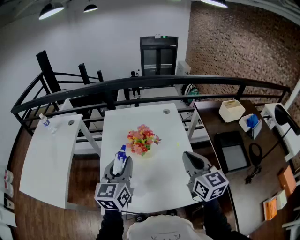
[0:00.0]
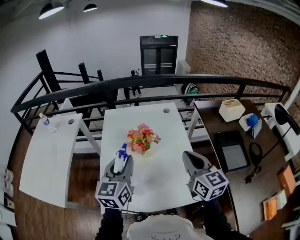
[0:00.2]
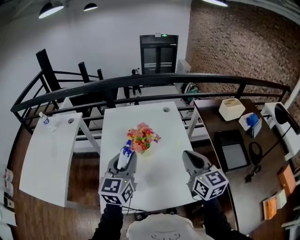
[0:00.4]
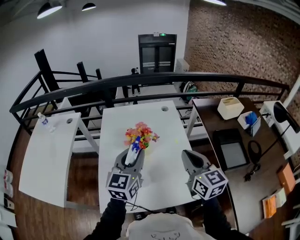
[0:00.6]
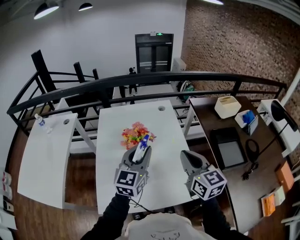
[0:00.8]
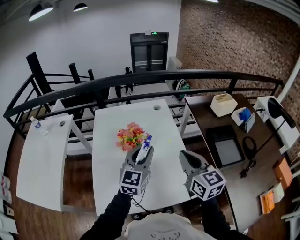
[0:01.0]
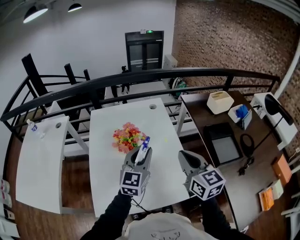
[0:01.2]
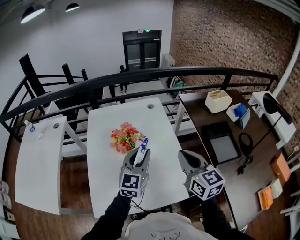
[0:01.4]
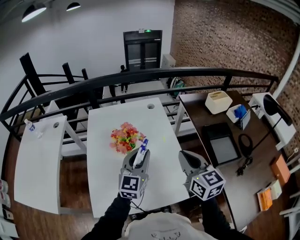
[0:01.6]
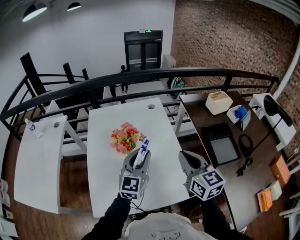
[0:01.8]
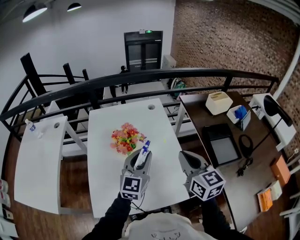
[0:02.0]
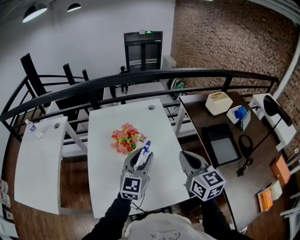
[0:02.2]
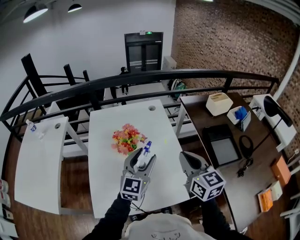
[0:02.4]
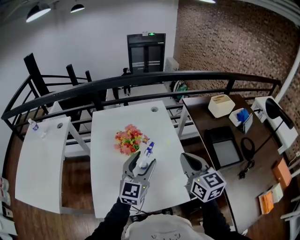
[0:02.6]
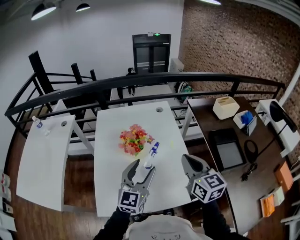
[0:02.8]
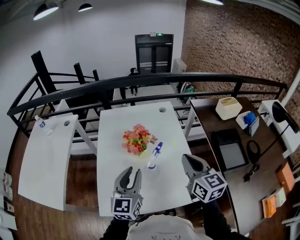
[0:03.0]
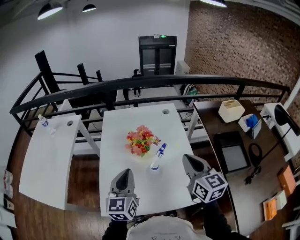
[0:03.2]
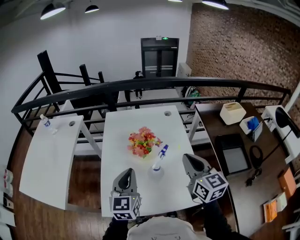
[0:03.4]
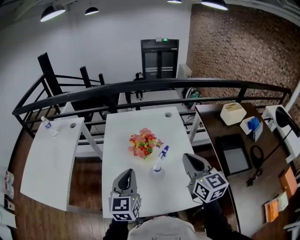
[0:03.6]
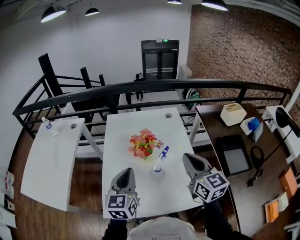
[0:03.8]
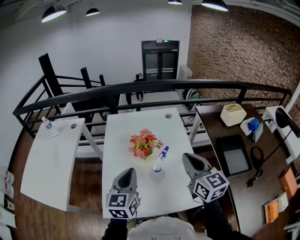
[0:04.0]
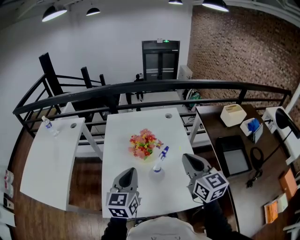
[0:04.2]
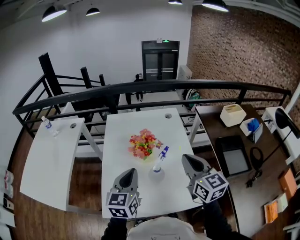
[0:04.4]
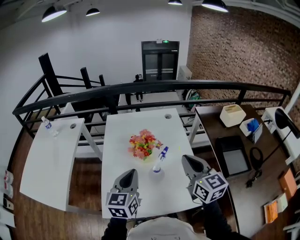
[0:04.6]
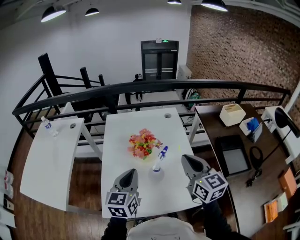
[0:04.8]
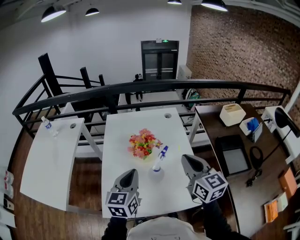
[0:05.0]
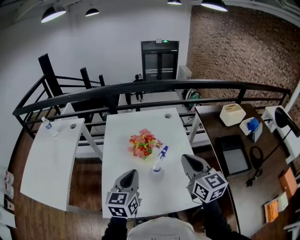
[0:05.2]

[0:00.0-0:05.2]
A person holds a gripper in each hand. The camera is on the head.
0:00.0 to 0:01.8: The left gripper travels to the right by roughly 15 cm, and rotates roughly 20 degrees.
0:01.8 to 0:03.4: The right gripper ends up approximately 5 cm from where it was. Meanwhile the left gripper heads to the left and backward, covering about 15 cm, turns by some 20 degrees, and closes.
0:03.4 to 0:05.2: The grippers stay close to where they were, moving slightly.

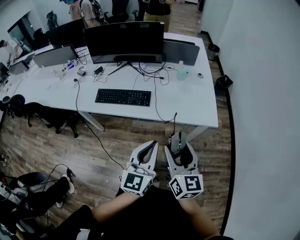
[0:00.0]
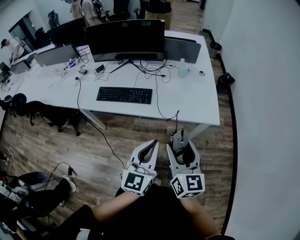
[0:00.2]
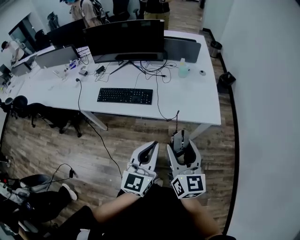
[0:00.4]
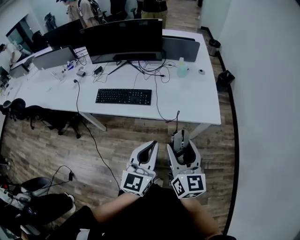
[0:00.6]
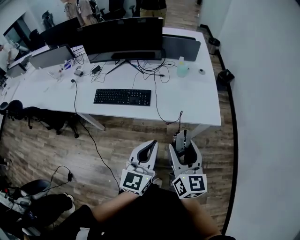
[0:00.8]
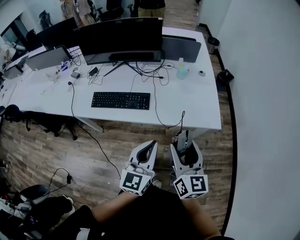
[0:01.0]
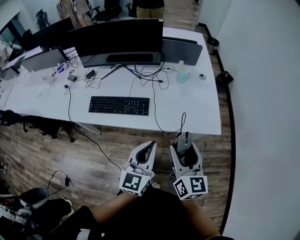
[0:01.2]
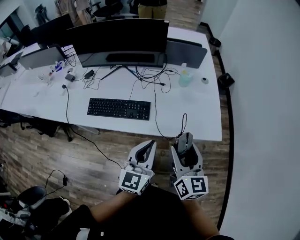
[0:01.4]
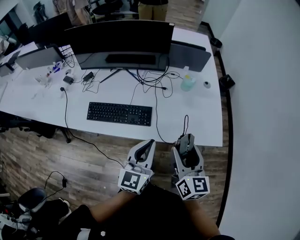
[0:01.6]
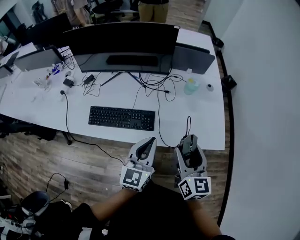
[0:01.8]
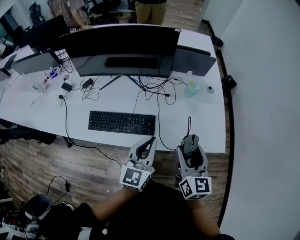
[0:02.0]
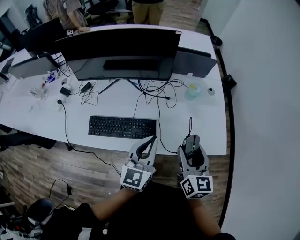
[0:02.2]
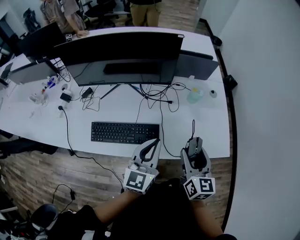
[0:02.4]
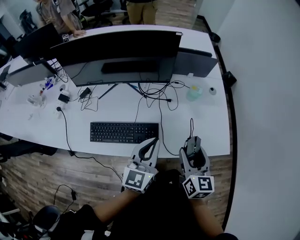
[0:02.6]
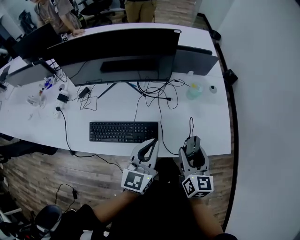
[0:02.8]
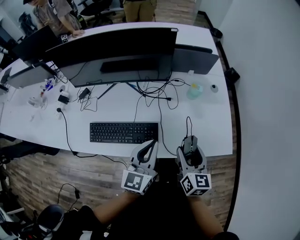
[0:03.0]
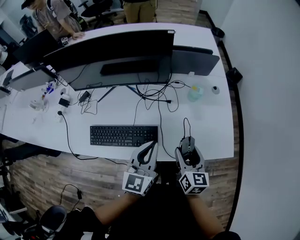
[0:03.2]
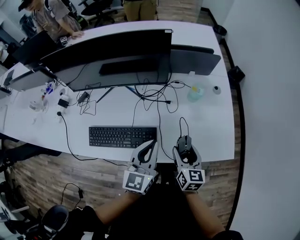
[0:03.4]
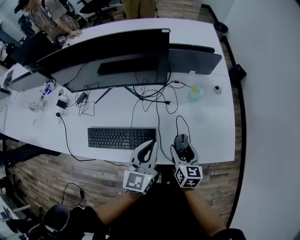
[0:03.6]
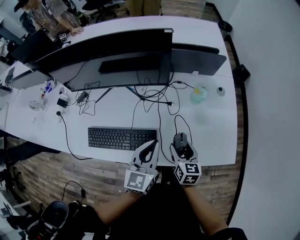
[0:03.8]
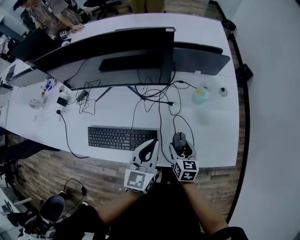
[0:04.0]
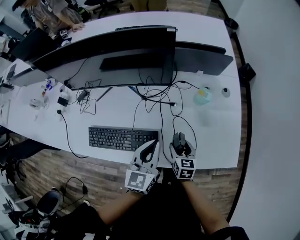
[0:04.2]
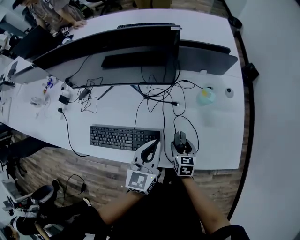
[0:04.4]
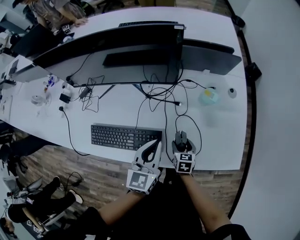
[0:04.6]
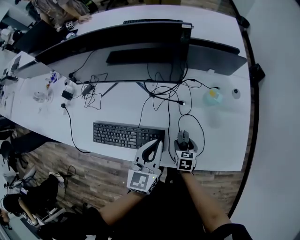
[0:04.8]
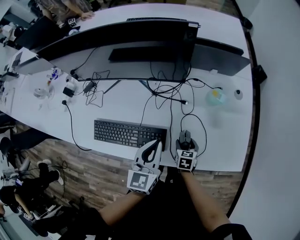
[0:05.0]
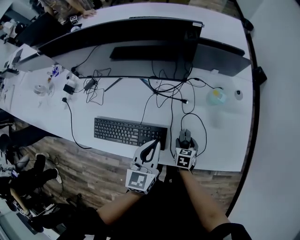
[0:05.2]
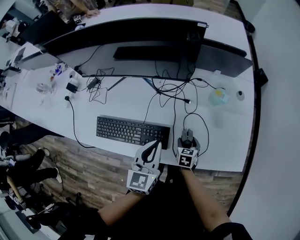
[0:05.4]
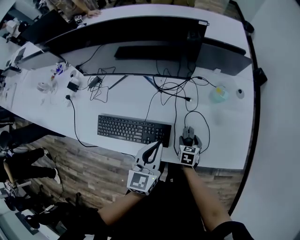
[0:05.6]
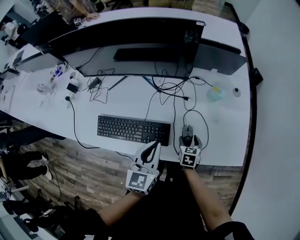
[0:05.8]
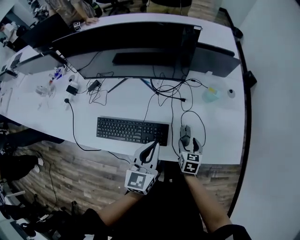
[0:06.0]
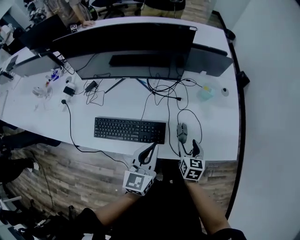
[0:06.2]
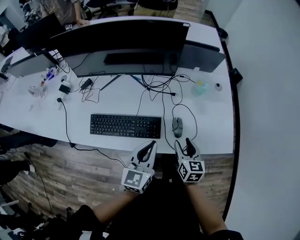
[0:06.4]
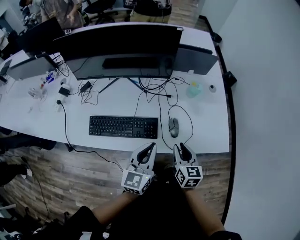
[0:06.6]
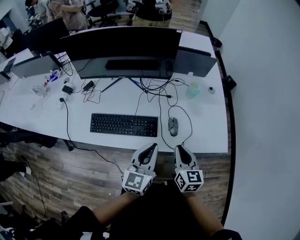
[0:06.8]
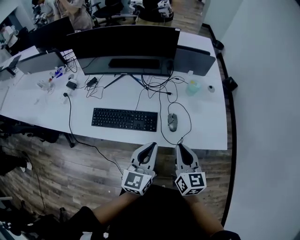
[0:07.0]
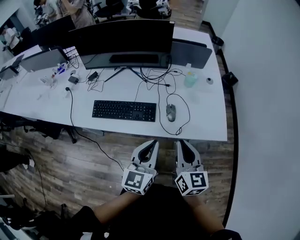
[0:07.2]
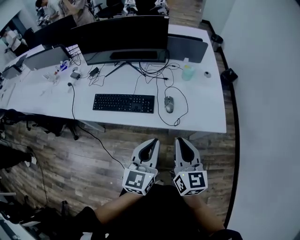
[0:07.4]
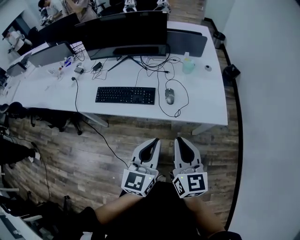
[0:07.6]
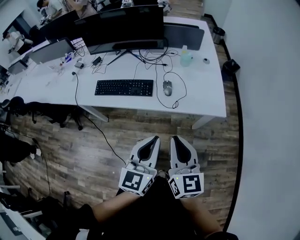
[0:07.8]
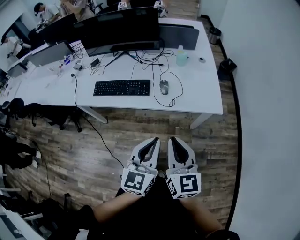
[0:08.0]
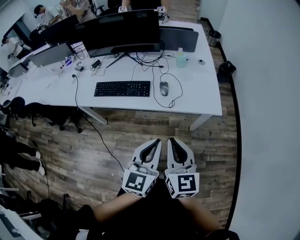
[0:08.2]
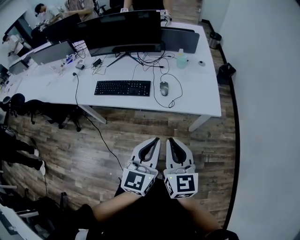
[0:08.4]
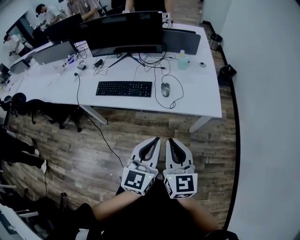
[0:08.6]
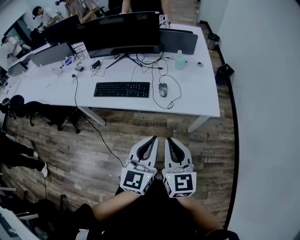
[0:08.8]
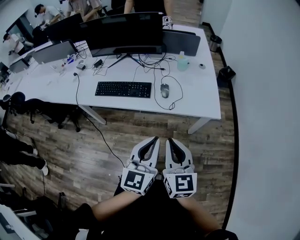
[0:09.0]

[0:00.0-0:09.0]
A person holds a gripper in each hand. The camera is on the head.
0:00.0 to 0:01.6: Both grippers travel together forward, roughly 20 cm.
0:01.6 to 0:03.0: The left gripper heads forward, covering approximately 15 cm; the right gripper goes approximately 15 cm forward and downward.
0:03.0 to 0:04.4: The left gripper heads forward and downward, covering about 10 cm; the right gripper moves downward and forward, some 25 cm, and turns by about 30 degrees.
0:04.4 to 0:06.0: The right gripper goes downward and returns, some 5 cm each way; the left gripper is displaced backward and to the left by about 10 cm.
0:06.0 to 0:07.6: The left gripper is displaced backward and to the right by some 30 cm. Meanwhile the right gripper heads backward and upward, covering approximately 40 cm, points its fingers roughly 40 degrees further upward, and closes up.
0:07.6 to 0:09.0: The two grippers go roughly 10 cm backward.

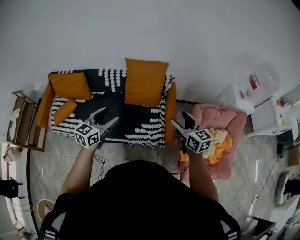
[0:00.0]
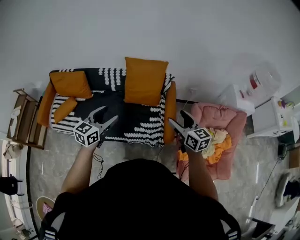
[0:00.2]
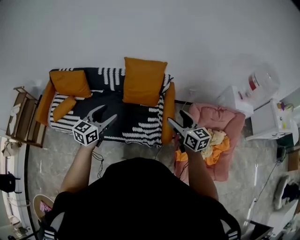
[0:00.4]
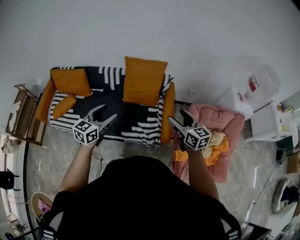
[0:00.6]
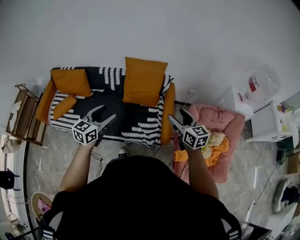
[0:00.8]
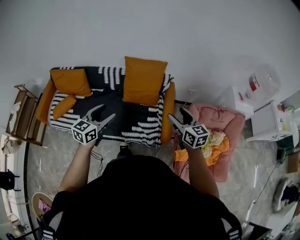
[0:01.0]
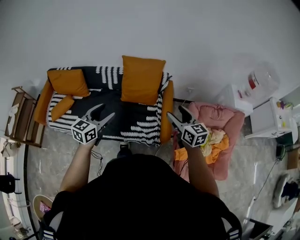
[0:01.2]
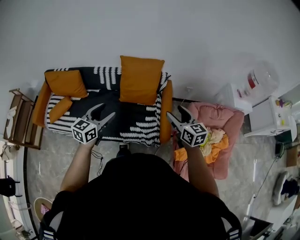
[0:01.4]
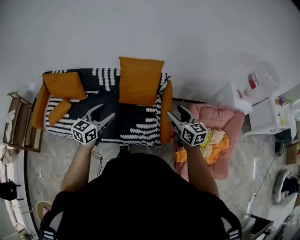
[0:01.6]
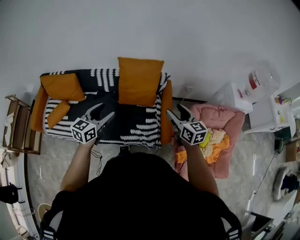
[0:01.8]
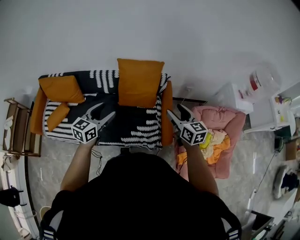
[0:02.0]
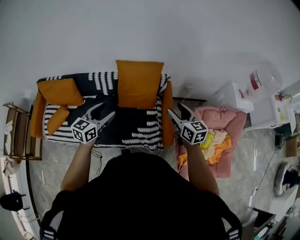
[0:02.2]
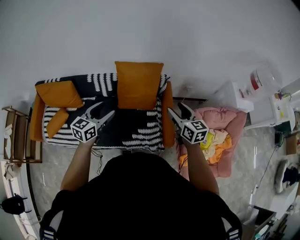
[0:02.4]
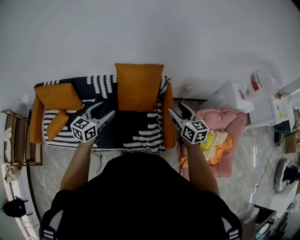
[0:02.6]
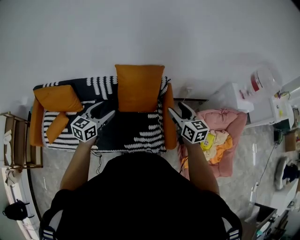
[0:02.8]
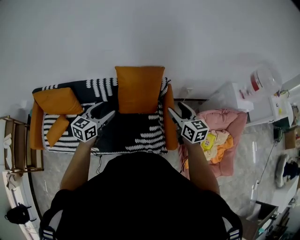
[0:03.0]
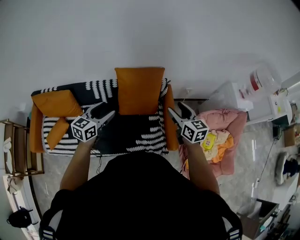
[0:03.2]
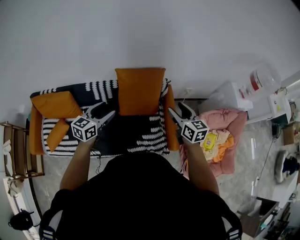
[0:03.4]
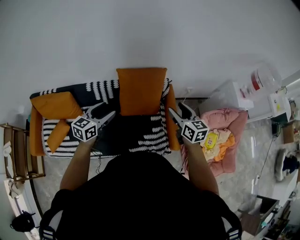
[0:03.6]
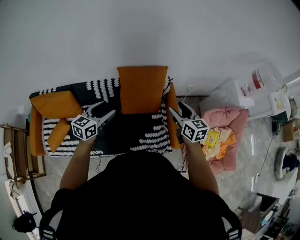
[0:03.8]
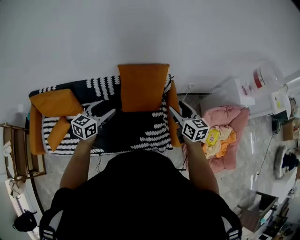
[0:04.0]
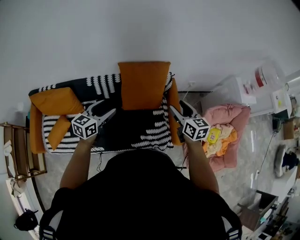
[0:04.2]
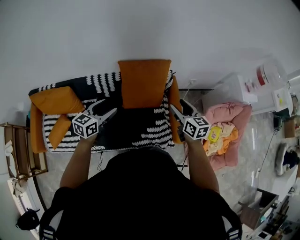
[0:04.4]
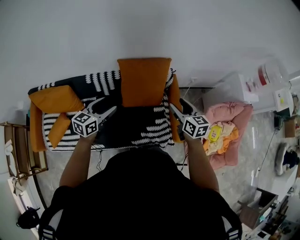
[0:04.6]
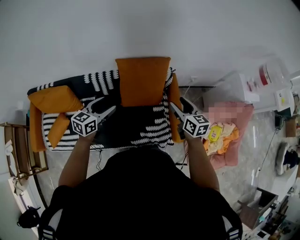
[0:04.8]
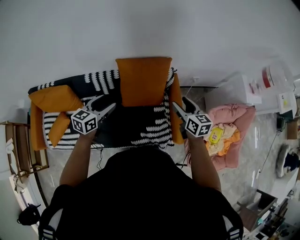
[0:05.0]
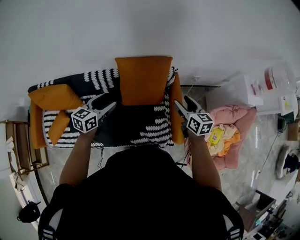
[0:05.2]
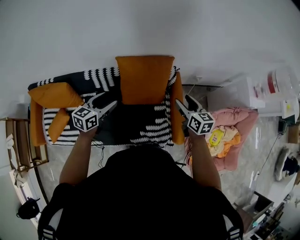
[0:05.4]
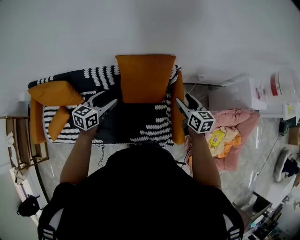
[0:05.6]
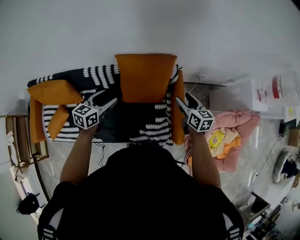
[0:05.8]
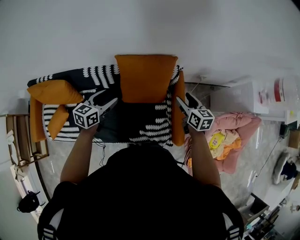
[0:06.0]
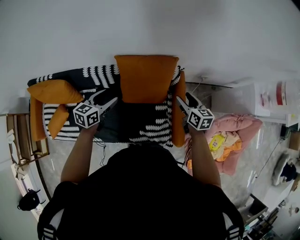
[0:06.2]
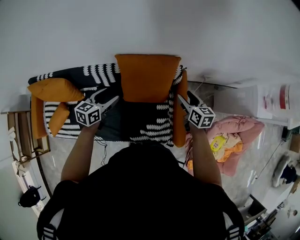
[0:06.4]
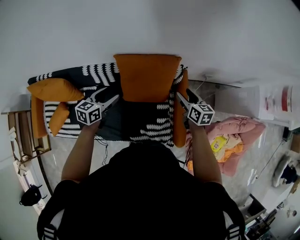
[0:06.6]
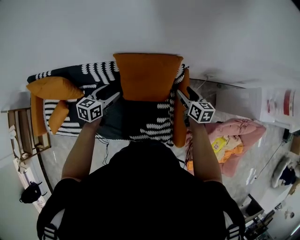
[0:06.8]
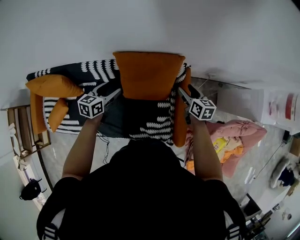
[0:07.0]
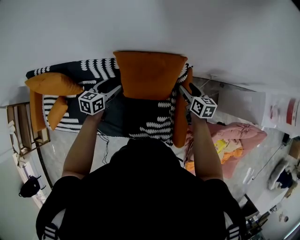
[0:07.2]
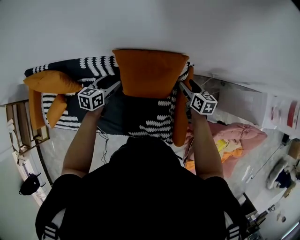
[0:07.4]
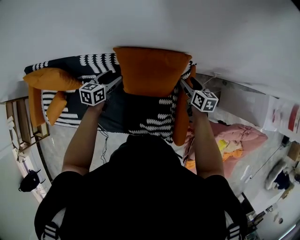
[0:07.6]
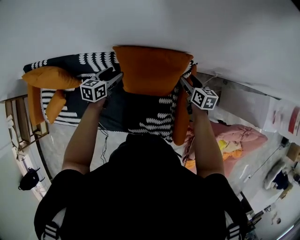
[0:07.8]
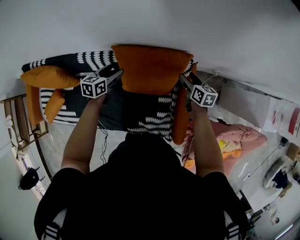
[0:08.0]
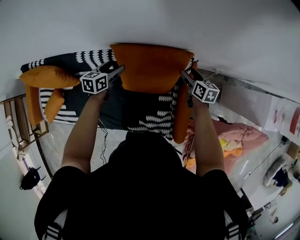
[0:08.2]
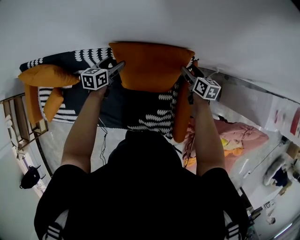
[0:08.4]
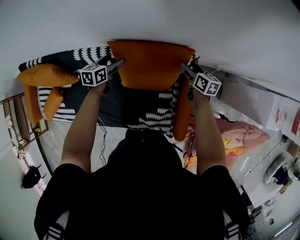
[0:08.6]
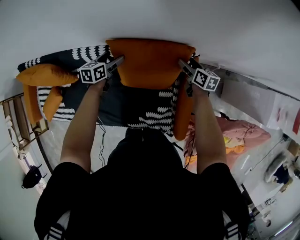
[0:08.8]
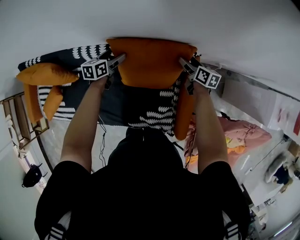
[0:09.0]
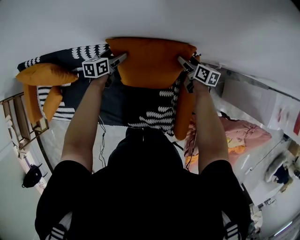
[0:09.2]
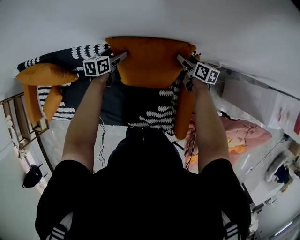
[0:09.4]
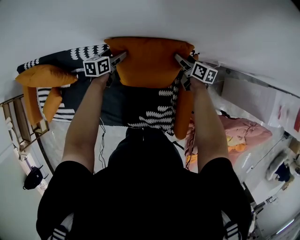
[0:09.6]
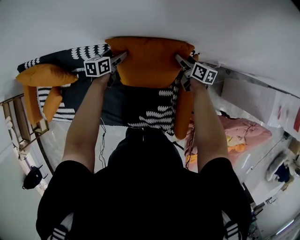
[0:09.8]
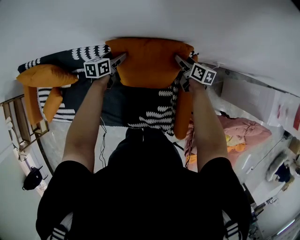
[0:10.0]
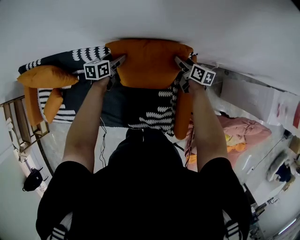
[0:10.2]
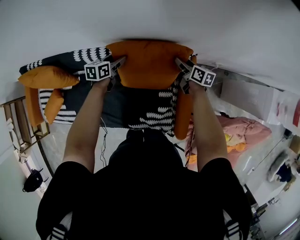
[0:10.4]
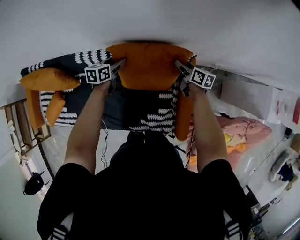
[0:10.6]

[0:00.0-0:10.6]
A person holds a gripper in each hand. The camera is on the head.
0:00.0 to 0:01.6: The left gripper shifts by roughly 5 cm. Meanwhile the right gripper heads forward, covering about 5 cm.
0:01.6 to 0:03.0: The two grippers go roughly 15 cm forward and to the left.
0:03.0 to 0:04.6: The left gripper travels to the left by roughly 5 cm; the right gripper heads downward, covering roughly 5 cm.
0:04.6 to 0:06.0: Both grippers move forward and downward, roughly 15 cm.
0:06.0 to 0:07.6: Both grippers travel together forward and downward, roughly 20 cm.
0:07.6 to 0:09.0: The two grippers go roughly 10 cm forward and downward.
0:09.0 to 0:10.6: The left gripper closes up, while the right gripper closes up.
